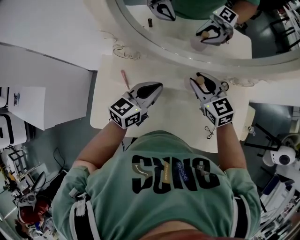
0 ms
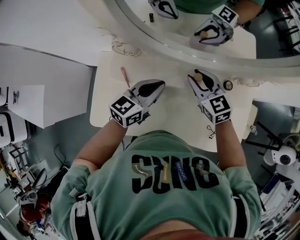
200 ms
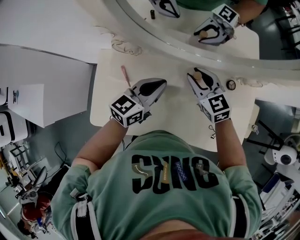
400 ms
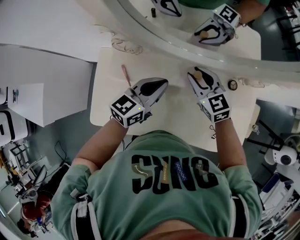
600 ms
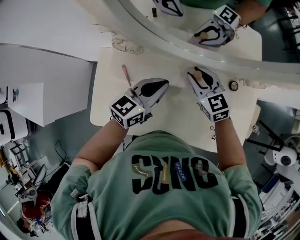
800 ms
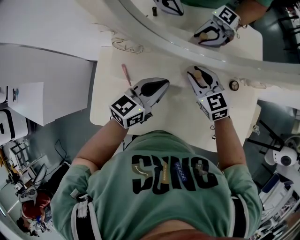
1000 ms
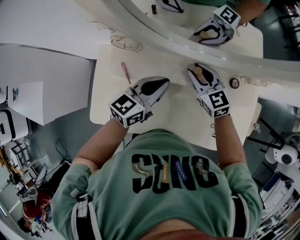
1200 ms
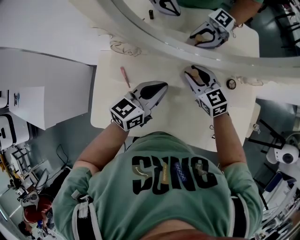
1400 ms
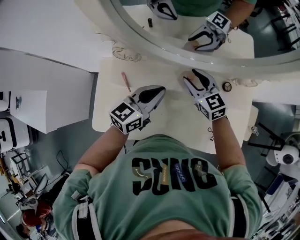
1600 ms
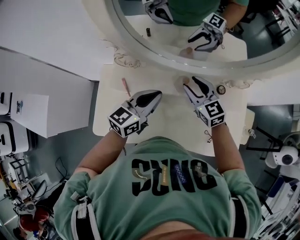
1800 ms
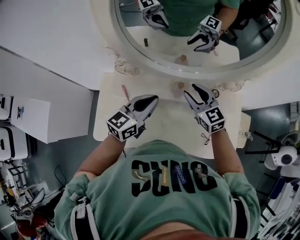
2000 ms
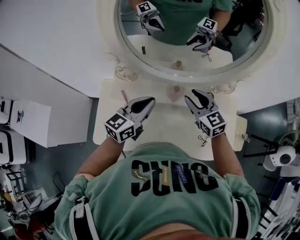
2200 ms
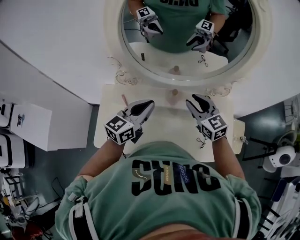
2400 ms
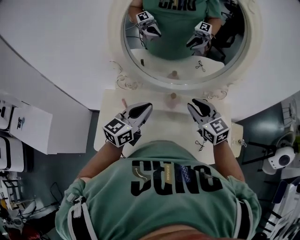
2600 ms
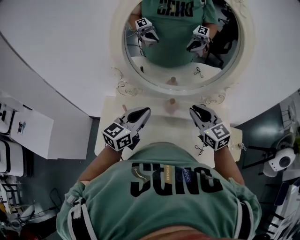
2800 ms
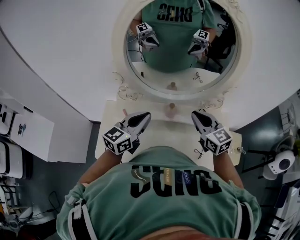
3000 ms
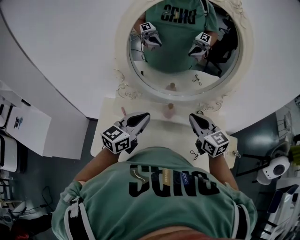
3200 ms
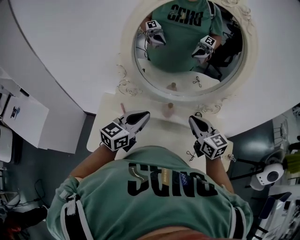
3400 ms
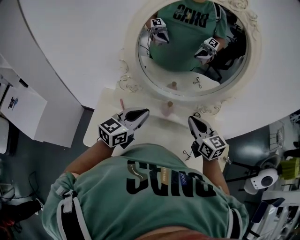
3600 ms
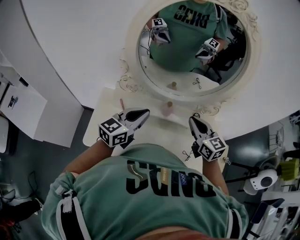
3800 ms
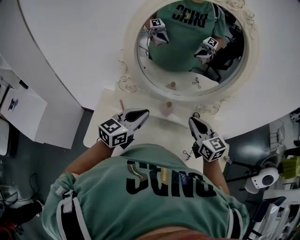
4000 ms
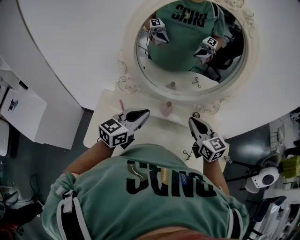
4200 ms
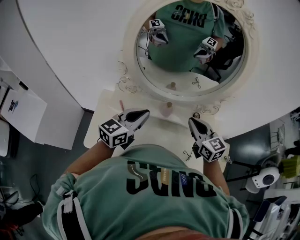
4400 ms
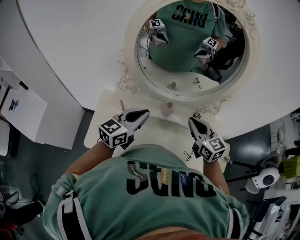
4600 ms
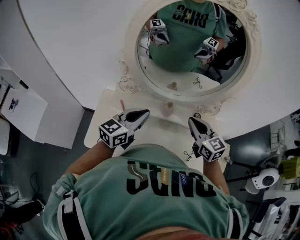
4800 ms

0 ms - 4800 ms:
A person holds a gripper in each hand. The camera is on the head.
1600 ms - 3200 ms: The left gripper is displaced upward and backward by approximately 15 cm; the right gripper heads upward, backward and to the right, covering roughly 25 cm, and closes its fingers.
3200 ms - 4800 ms: The grippers make only small movements.

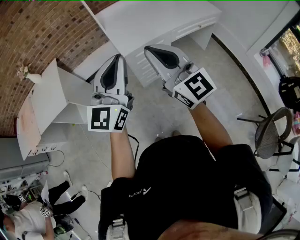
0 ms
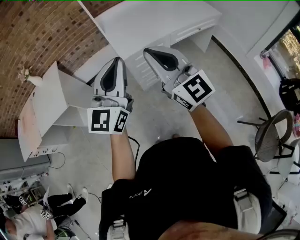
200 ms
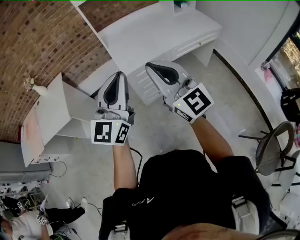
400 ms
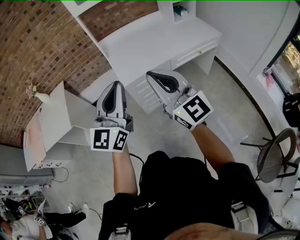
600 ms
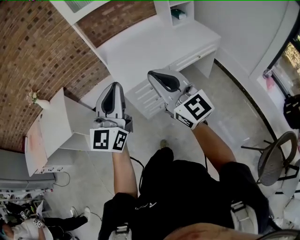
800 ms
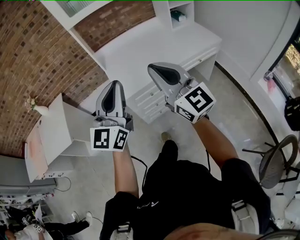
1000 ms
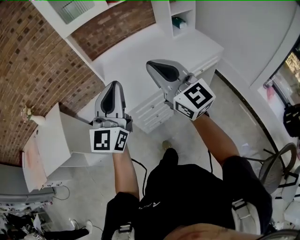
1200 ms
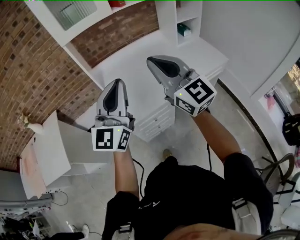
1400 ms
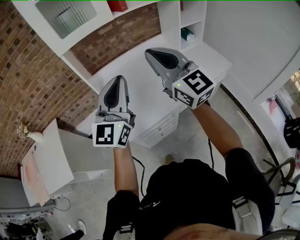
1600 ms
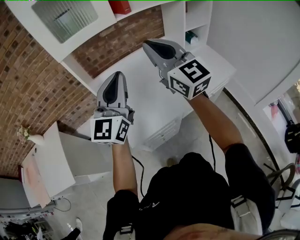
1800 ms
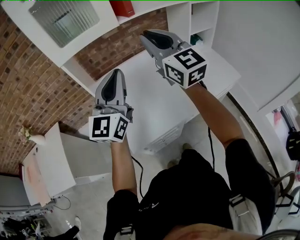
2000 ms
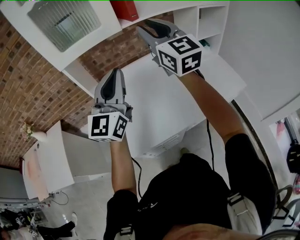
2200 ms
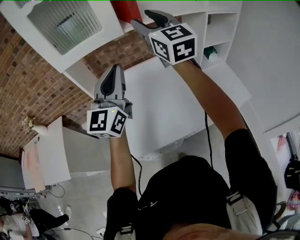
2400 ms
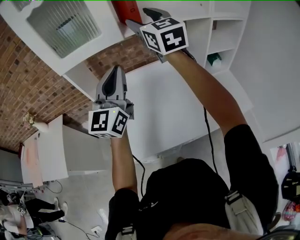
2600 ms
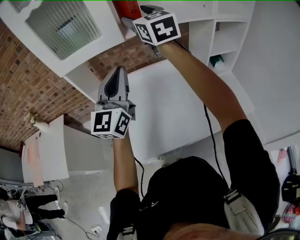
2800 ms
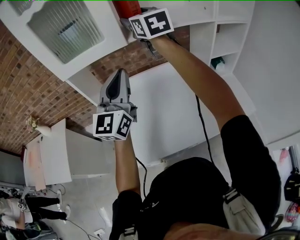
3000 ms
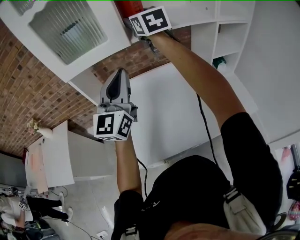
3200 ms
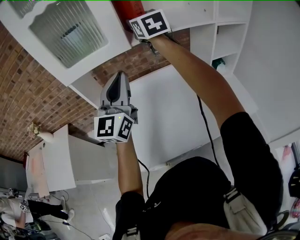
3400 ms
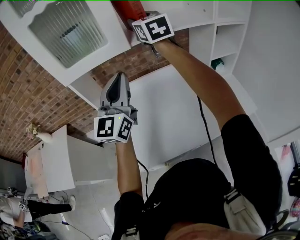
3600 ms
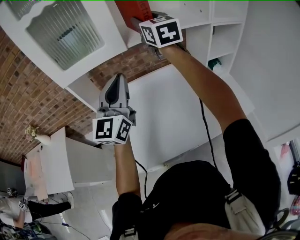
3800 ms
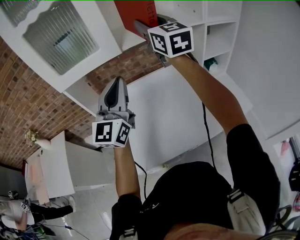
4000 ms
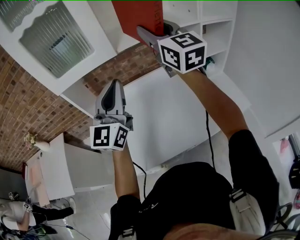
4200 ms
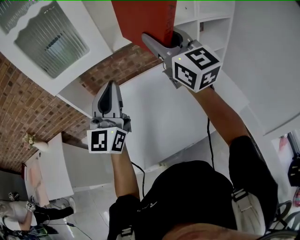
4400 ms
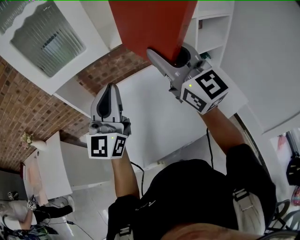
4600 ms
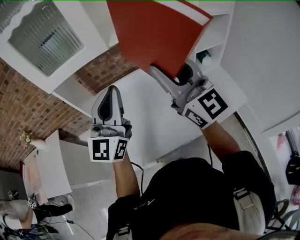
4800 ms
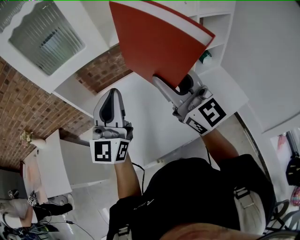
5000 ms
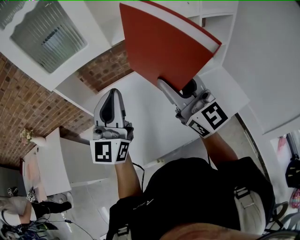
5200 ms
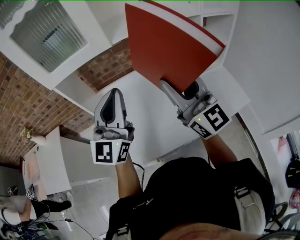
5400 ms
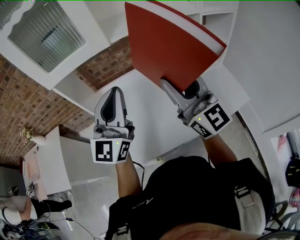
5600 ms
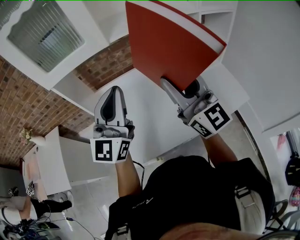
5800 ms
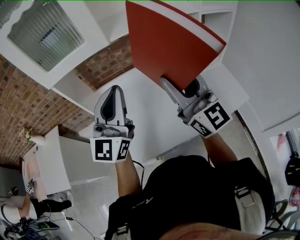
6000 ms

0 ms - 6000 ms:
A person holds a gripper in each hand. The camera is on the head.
0 ms - 1600 ms: Both grippers are carried forward, about 50 cm.
1600 ms - 3000 ms: The right gripper heads forward, covering approximately 40 cm, and opens. Meanwhile the left gripper heads forward, covering roughly 25 cm.
3000 ms - 4400 ms: The right gripper goes about 20 cm backward and to the right, and closes up.
4400 ms - 6000 ms: The right gripper moves downward and backward, approximately 15 cm.

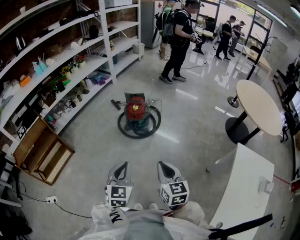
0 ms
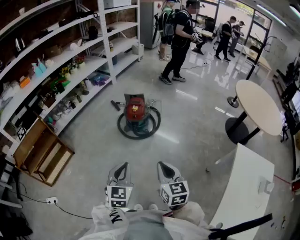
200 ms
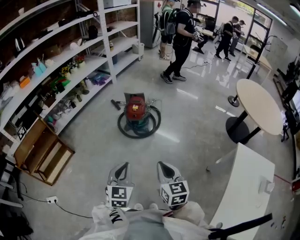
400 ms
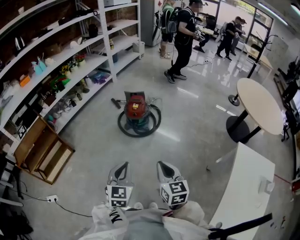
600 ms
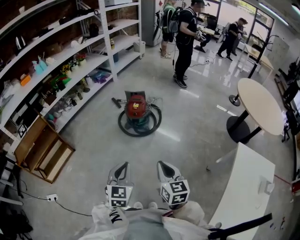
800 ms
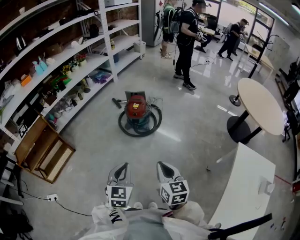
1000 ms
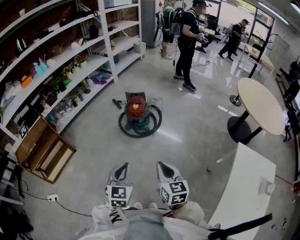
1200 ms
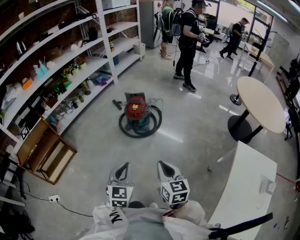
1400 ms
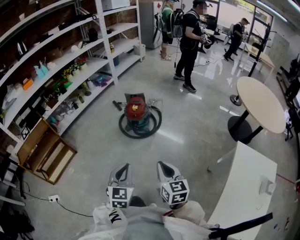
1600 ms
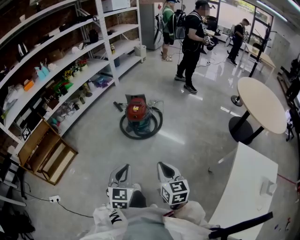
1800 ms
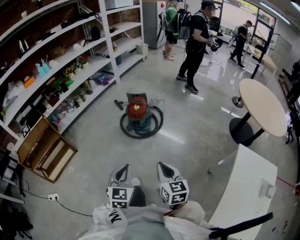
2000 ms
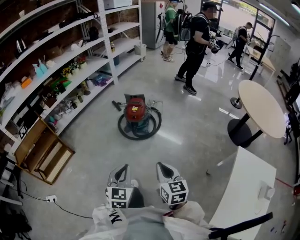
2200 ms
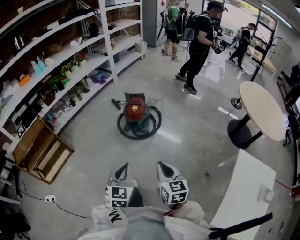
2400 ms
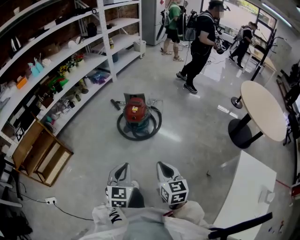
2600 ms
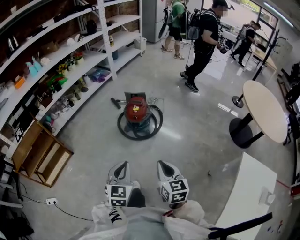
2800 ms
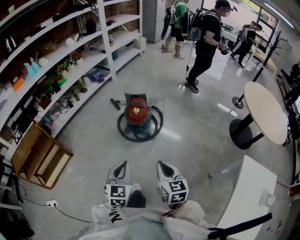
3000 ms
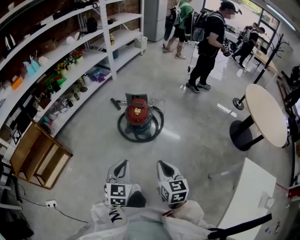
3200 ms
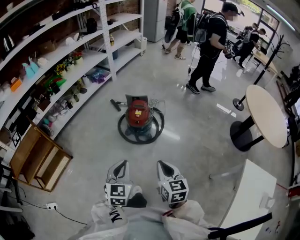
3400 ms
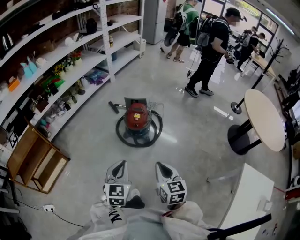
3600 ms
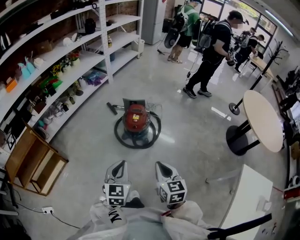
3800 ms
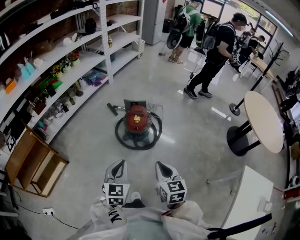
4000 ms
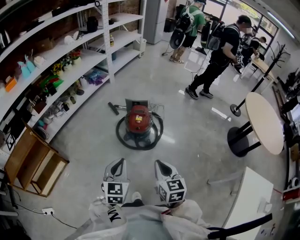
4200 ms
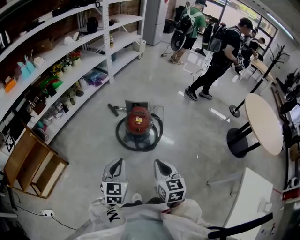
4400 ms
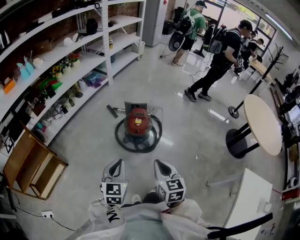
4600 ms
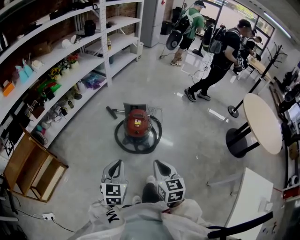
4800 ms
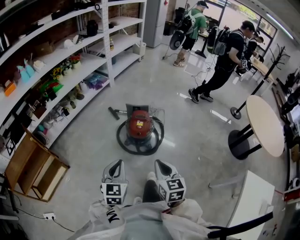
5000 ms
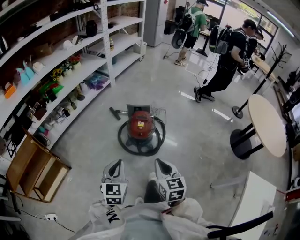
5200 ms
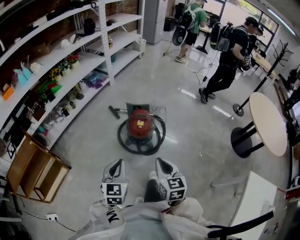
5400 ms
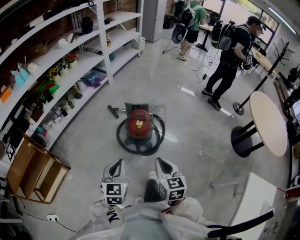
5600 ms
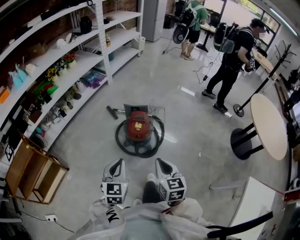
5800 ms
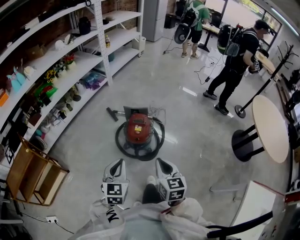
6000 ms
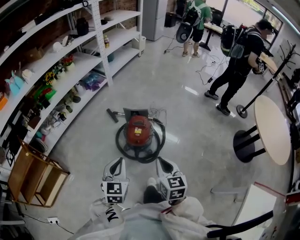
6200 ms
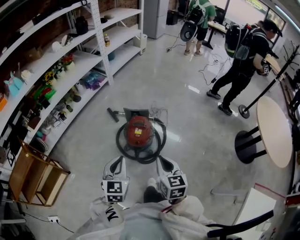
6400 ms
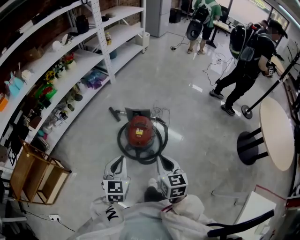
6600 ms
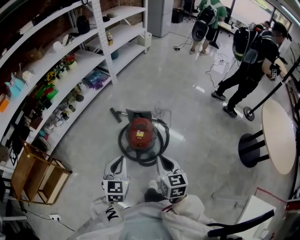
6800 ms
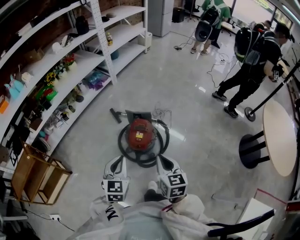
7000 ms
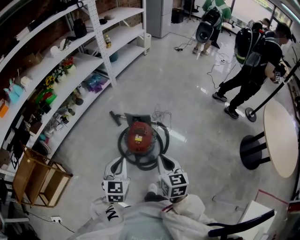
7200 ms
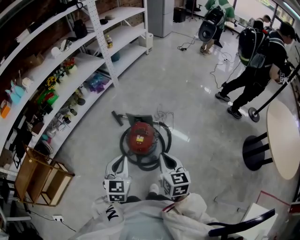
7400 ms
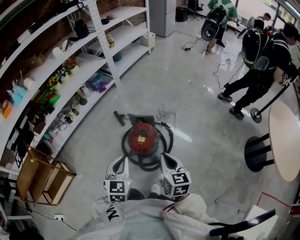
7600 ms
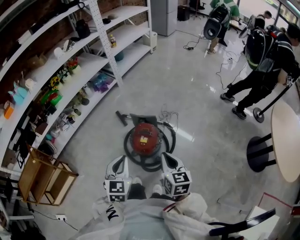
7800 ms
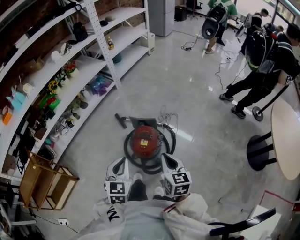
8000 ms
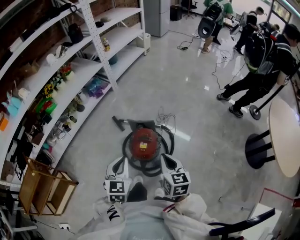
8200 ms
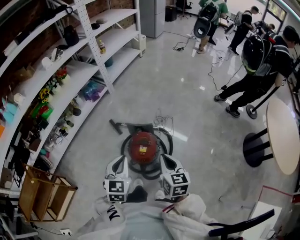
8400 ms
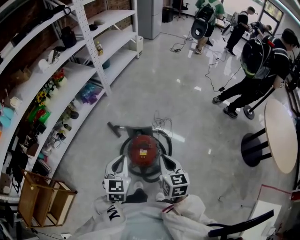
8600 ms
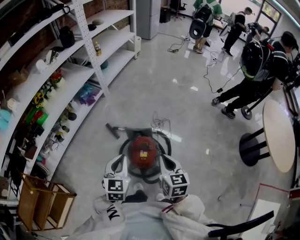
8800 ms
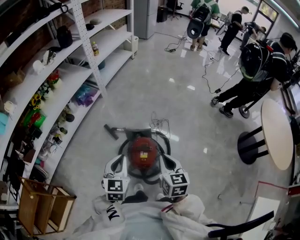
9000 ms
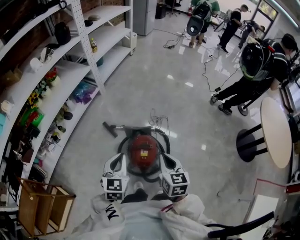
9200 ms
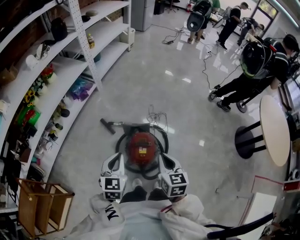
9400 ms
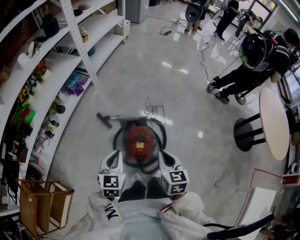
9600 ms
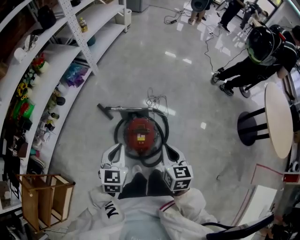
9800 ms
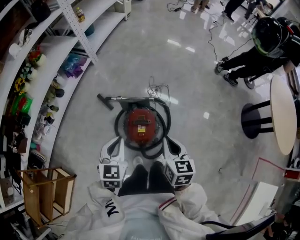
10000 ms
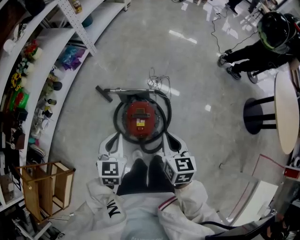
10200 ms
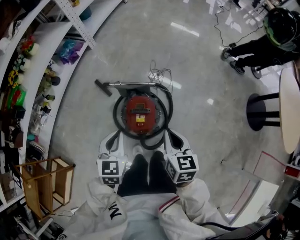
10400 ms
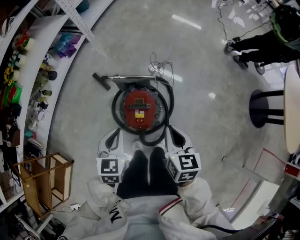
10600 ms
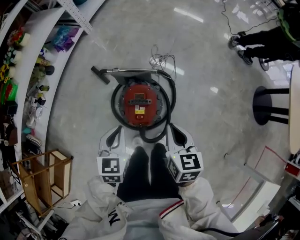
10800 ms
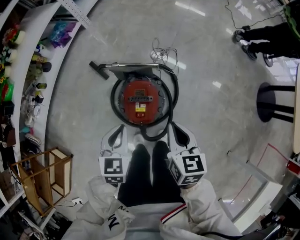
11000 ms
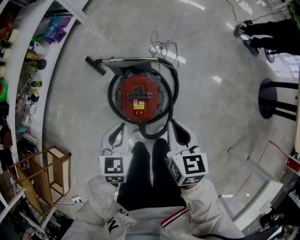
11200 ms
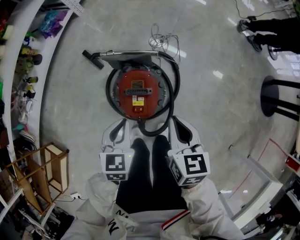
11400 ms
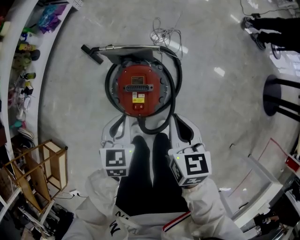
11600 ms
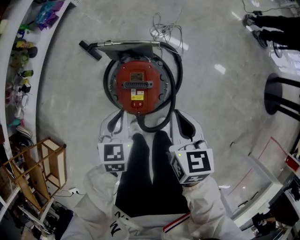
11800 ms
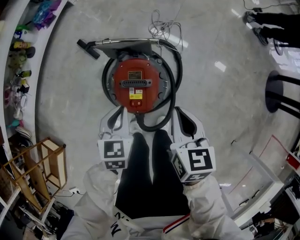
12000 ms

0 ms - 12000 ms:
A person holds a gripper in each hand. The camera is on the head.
0 ms - 1600 ms: The grippers move only a little.
1600 ms - 3000 ms: Both grippers travel together forward, roughly 10 cm.
3000 ms - 4400 ms: Both grippers travel together forward and to the left, approximately 15 cm.
4400 ms - 6000 ms: Both grippers travel together forward, approximately 10 cm.
6000 ms - 7600 ms: Both grippers travel together forward and to the right, some 15 cm.
7600 ms - 9000 ms: The two grippers go roughly 15 cm forward and to the left.
9000 ms - 10400 ms: Both grippers move downward, about 10 cm.
10400 ms - 12000 ms: The two grippers go some 15 cm downward.

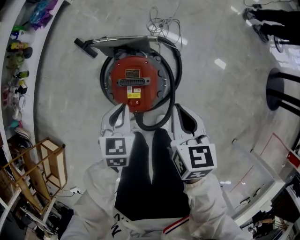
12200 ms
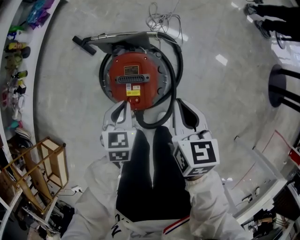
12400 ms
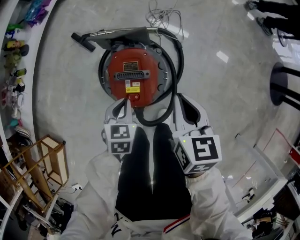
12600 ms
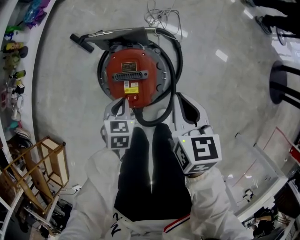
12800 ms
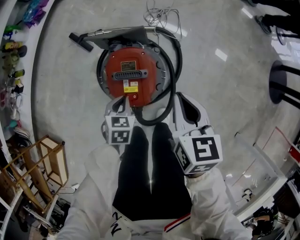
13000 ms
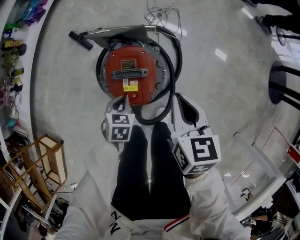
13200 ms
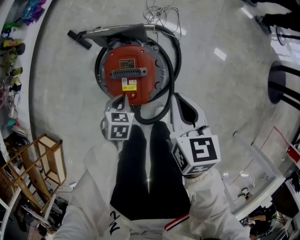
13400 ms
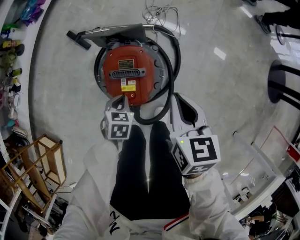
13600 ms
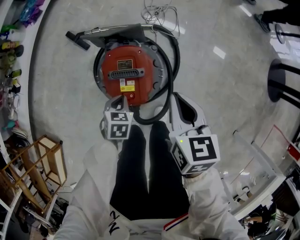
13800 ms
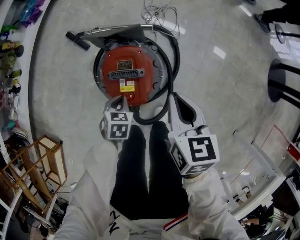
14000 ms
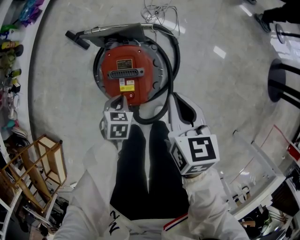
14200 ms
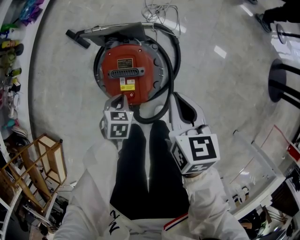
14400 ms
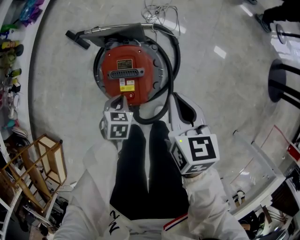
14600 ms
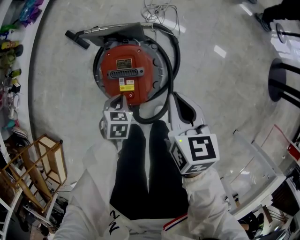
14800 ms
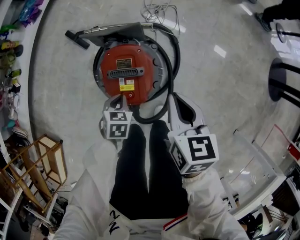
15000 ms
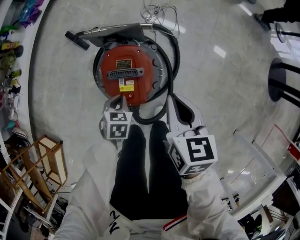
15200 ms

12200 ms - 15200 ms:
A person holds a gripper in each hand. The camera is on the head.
12200 ms - 13800 ms: The left gripper travels downward by roughly 15 cm.
13800 ms - 15200 ms: The two grippers keep their place.
